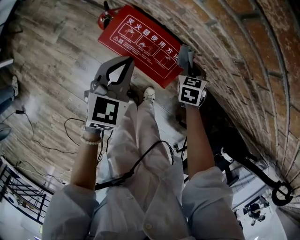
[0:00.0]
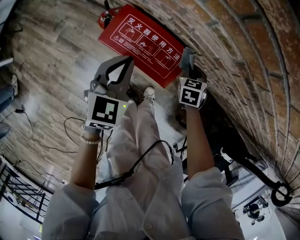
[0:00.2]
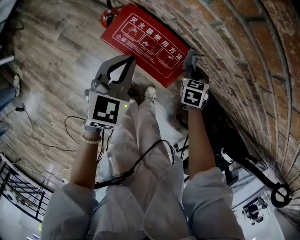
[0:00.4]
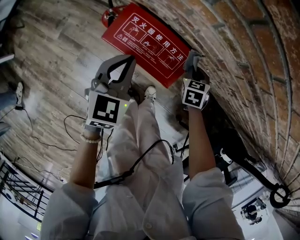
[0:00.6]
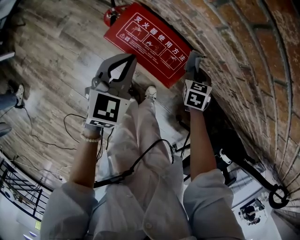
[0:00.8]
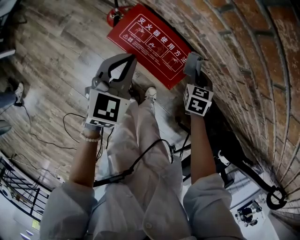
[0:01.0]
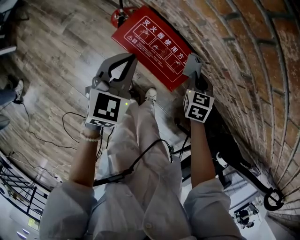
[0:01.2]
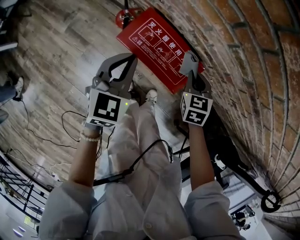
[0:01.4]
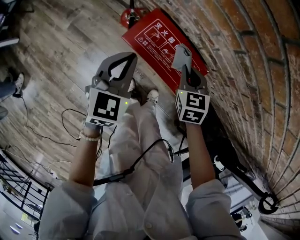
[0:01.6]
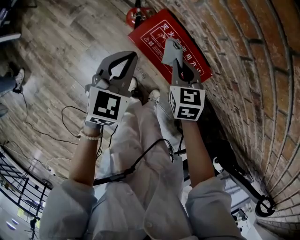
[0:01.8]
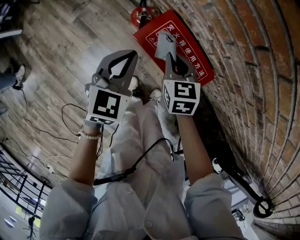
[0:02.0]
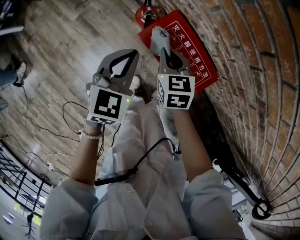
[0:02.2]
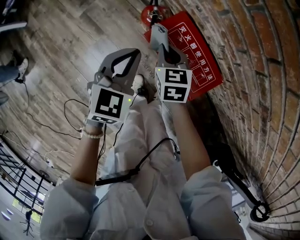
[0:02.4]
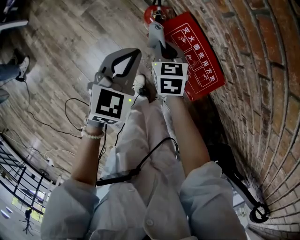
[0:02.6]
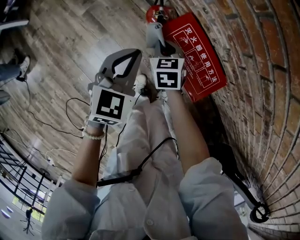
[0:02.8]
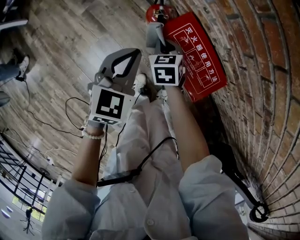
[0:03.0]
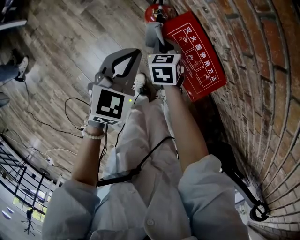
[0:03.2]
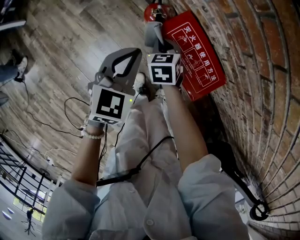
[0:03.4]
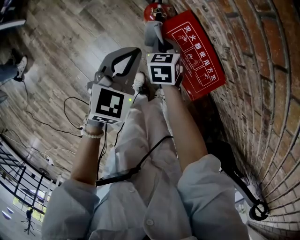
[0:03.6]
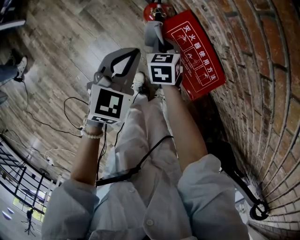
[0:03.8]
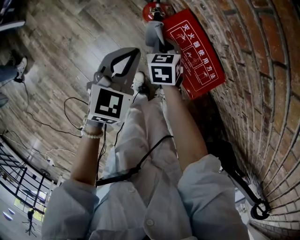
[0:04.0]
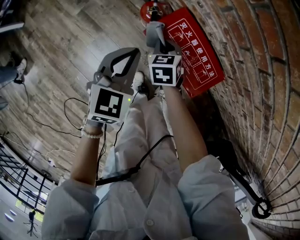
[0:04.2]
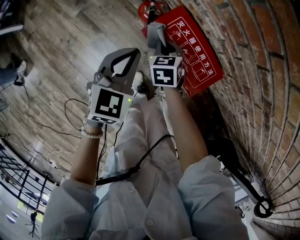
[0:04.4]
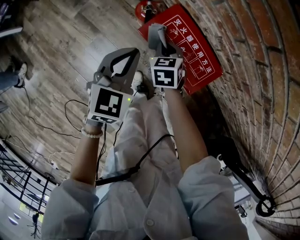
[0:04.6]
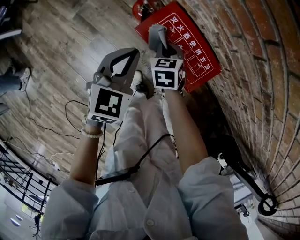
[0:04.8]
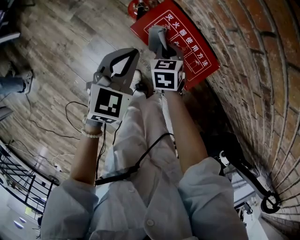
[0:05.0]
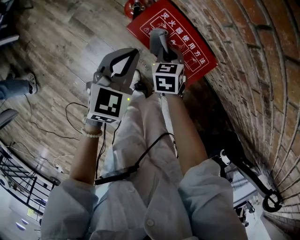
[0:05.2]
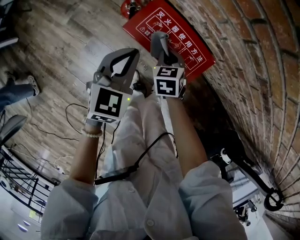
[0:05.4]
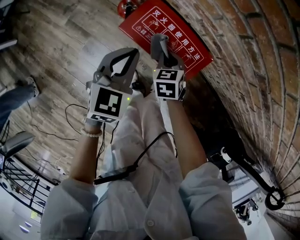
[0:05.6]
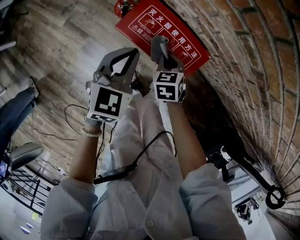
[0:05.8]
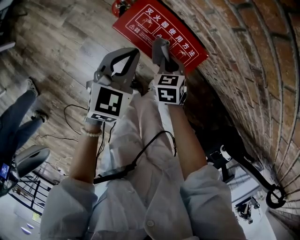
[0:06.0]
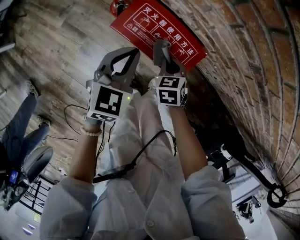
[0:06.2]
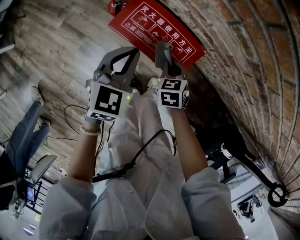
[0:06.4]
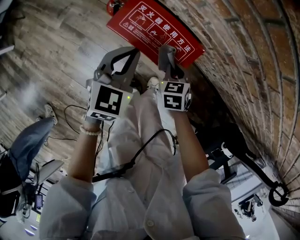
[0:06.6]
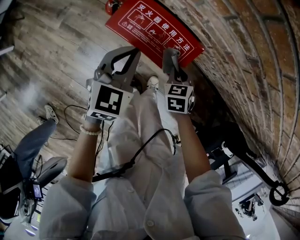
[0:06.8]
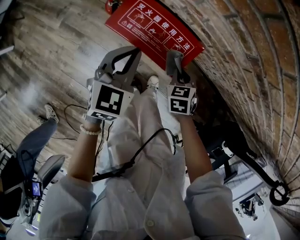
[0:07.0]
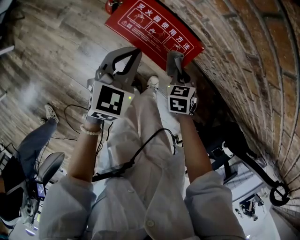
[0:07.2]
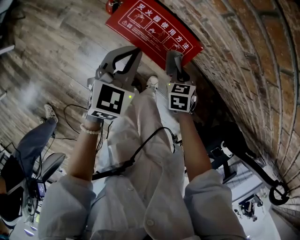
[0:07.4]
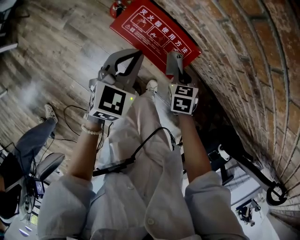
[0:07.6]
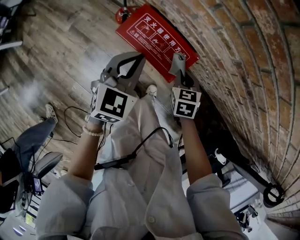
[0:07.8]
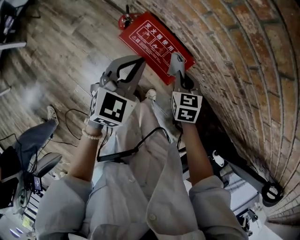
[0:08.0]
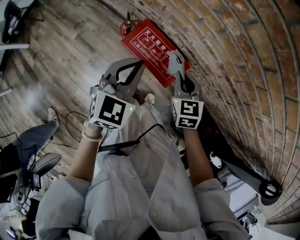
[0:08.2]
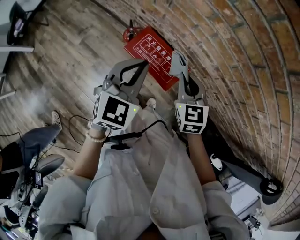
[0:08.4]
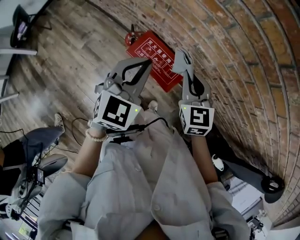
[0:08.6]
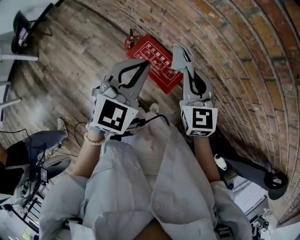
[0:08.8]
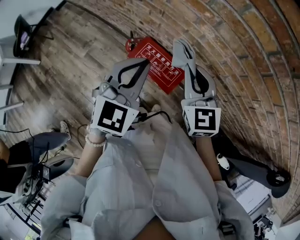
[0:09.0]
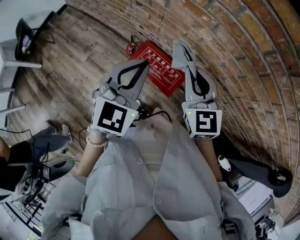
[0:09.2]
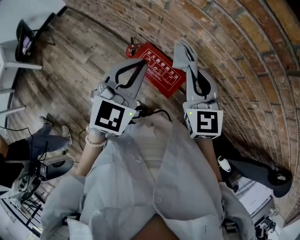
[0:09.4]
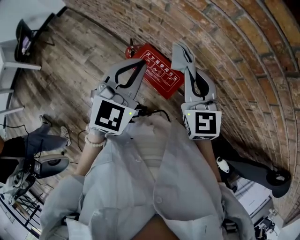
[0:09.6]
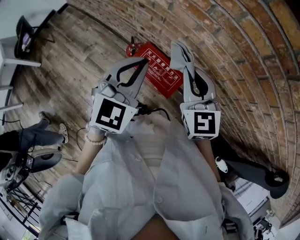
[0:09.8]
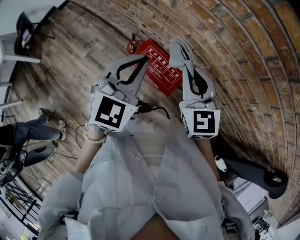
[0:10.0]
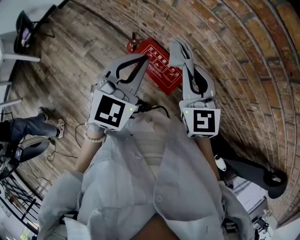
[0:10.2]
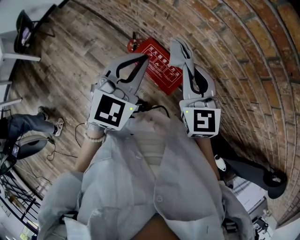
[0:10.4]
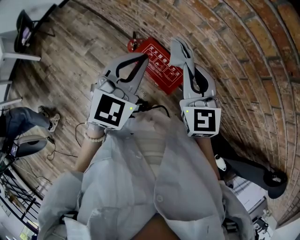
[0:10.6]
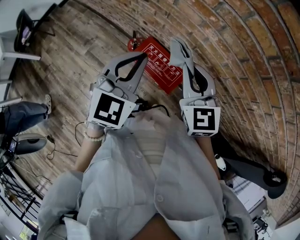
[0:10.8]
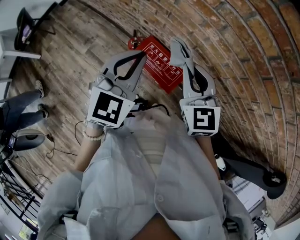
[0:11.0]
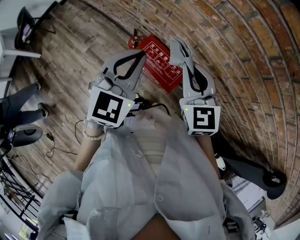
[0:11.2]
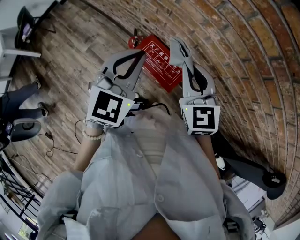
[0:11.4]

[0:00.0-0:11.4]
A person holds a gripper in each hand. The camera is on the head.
0.0 to 1.4 s: The left gripper goes roughly 5 cm to the left, while the right gripper moves to the left and upward, some 10 cm.
1.4 to 2.8 s: The right gripper shifts roughly 25 cm to the left, while the left gripper moves to the left, approximately 10 cm.
2.8 to 4.2 s: The grippers stay close to where they were, moving slightly.
4.2 to 5.6 s: The right gripper shifts some 15 cm to the right and backward; the left gripper moves to the right, about 10 cm.
5.6 to 7.2 s: The left gripper moves to the right, approximately 5 cm. The right gripper shifts about 15 cm to the right and backward.
7.2 to 8.6 s: The two grippers go some 30 cm upward. The right gripper points its fingers approximately 40 degrees further upward.
8.6 to 10.0 s: Both grippers travel together upward, approximately 10 cm.
10.0 to 11.4 s: The grippers make only small movements.

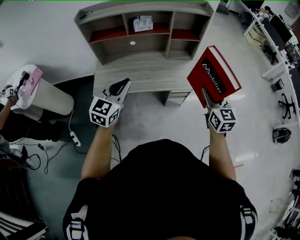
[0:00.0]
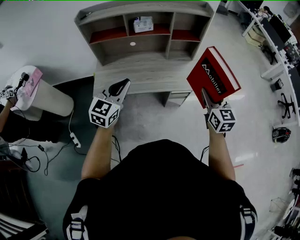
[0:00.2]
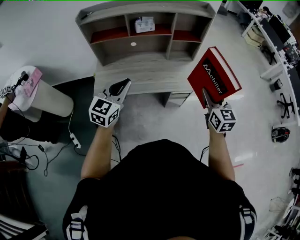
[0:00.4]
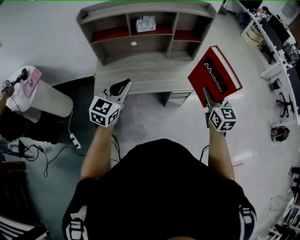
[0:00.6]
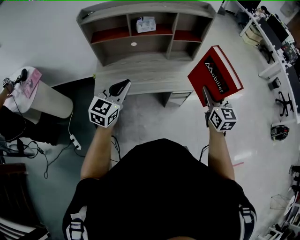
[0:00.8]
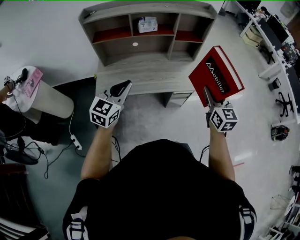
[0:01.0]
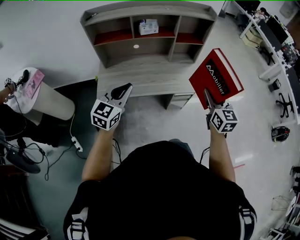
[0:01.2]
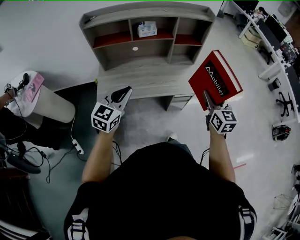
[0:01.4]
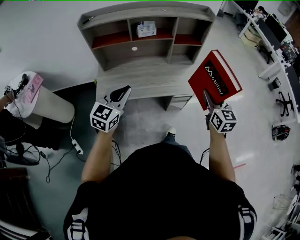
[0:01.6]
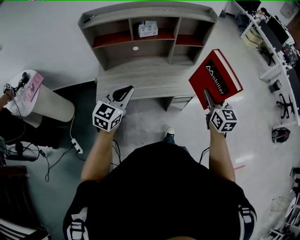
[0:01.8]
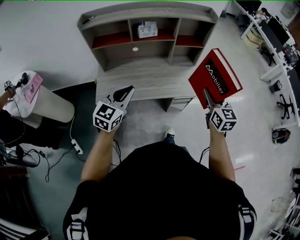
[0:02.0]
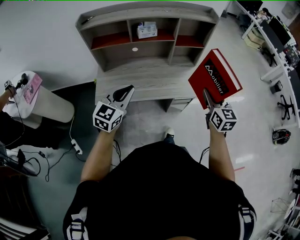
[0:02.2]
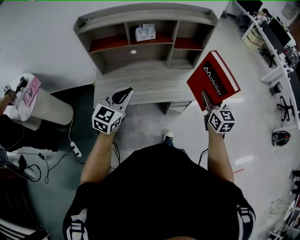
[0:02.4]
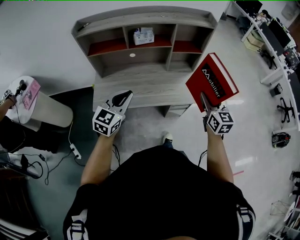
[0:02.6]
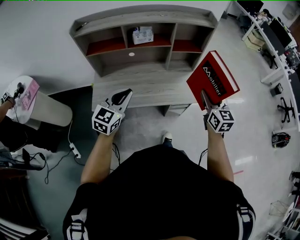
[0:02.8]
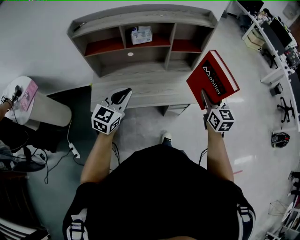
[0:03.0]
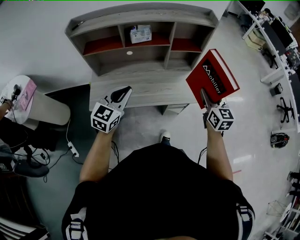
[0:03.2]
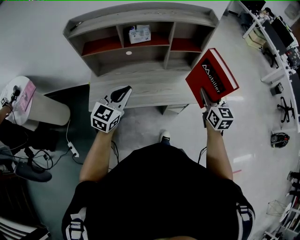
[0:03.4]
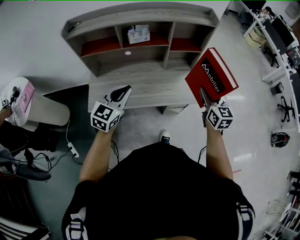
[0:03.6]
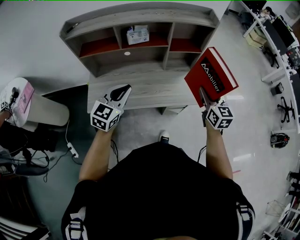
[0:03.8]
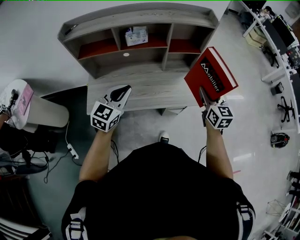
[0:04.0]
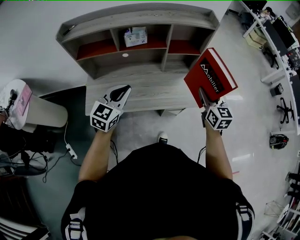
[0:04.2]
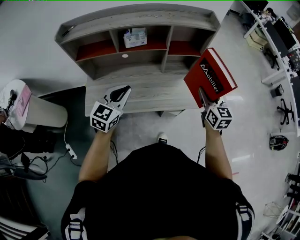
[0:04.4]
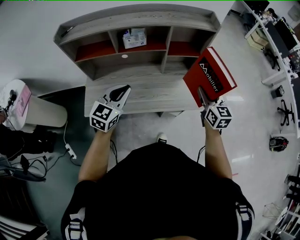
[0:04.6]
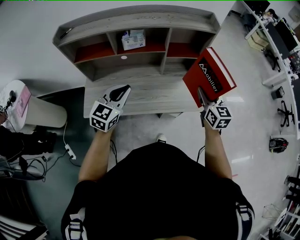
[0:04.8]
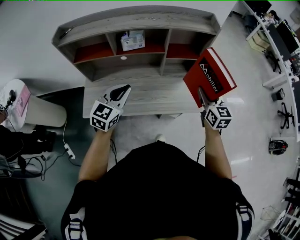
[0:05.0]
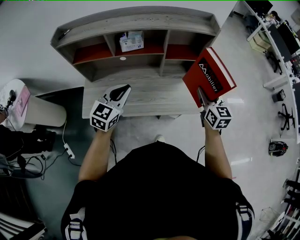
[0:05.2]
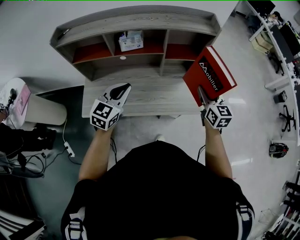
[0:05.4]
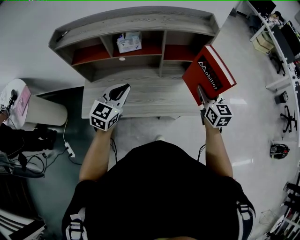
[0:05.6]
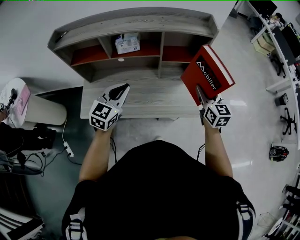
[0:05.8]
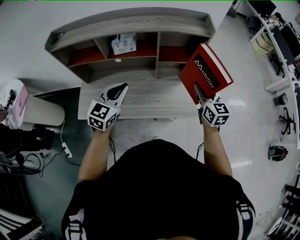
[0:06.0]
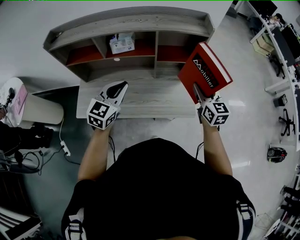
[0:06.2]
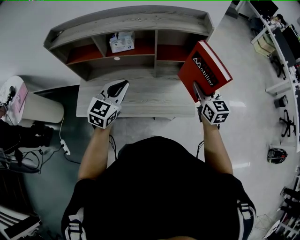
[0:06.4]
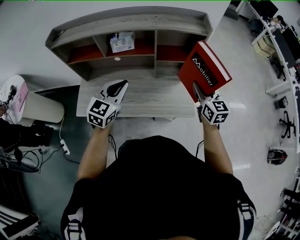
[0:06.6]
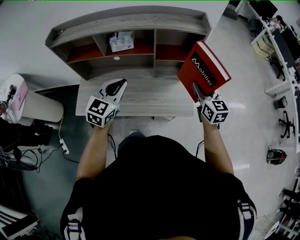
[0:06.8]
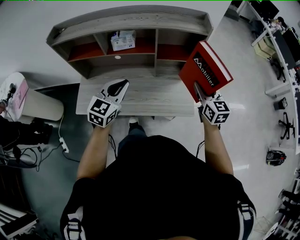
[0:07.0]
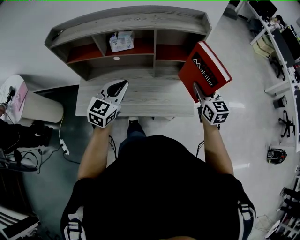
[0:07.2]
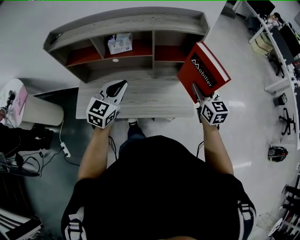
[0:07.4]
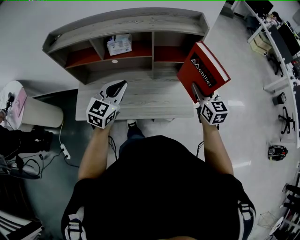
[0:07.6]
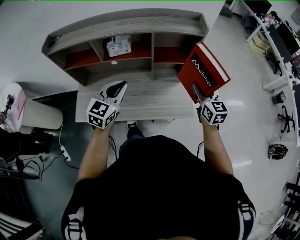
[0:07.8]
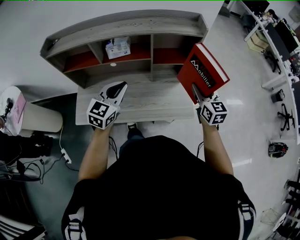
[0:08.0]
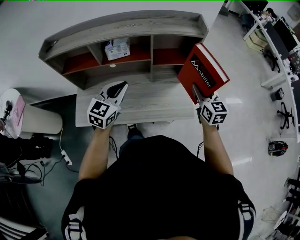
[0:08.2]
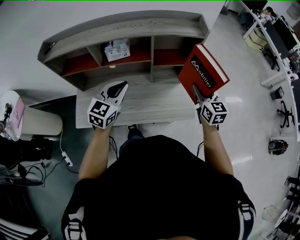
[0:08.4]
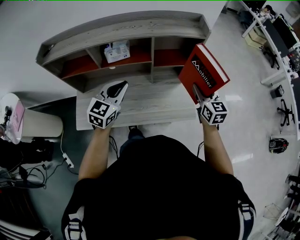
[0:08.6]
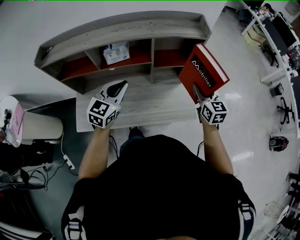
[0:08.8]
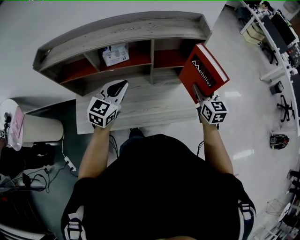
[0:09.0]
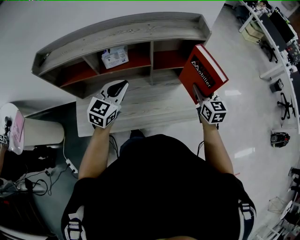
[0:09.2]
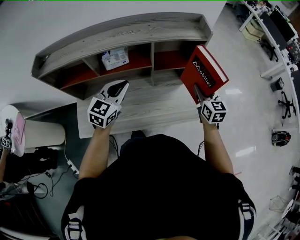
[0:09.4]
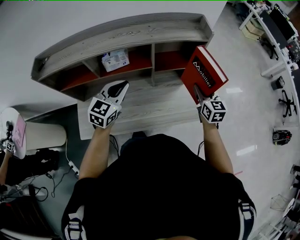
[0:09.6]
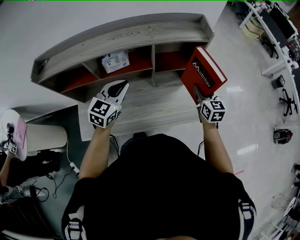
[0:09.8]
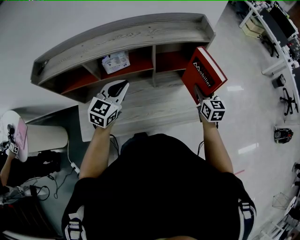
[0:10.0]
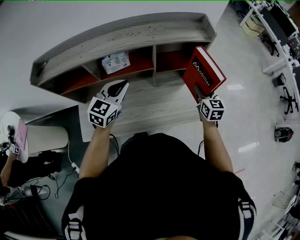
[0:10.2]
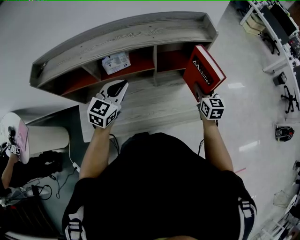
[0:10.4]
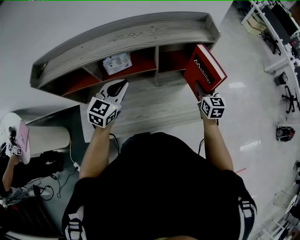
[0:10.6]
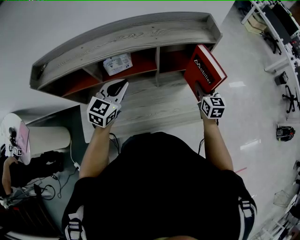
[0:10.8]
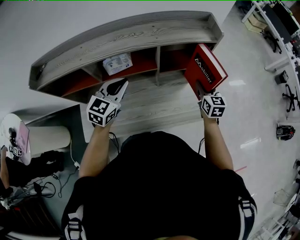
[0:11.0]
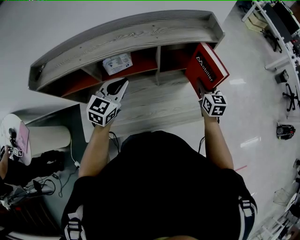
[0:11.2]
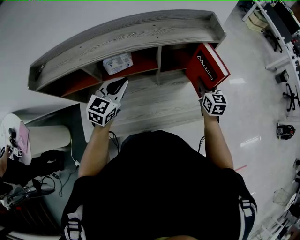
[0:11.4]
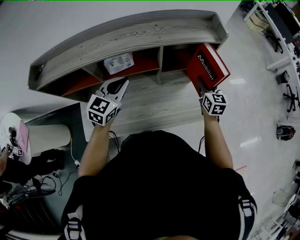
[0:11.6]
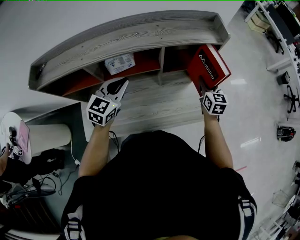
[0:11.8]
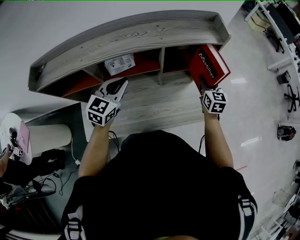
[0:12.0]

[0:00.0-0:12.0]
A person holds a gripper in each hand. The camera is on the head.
0.0 to 1.6 s: The left gripper travels to the left by some 5 cm.
1.6 to 3.0 s: Both grippers move forward, approximately 10 cm.
3.0 to 4.4 s: The two grippers go roughly 10 cm forward.
4.4 to 6.0 s: The left gripper goes about 10 cm forward and to the right. Meanwhile the right gripper is displaced forward by about 10 cm.
6.0 to 7.6 s: The grippers move only a little.
7.6 to 9.0 s: The left gripper shifts roughly 5 cm forward.
9.0 to 10.4 s: The right gripper heads downward and forward, covering roughly 10 cm. The left gripper shifts approximately 5 cm forward.
10.4 to 12.0 s: The right gripper shifts roughly 5 cm forward.

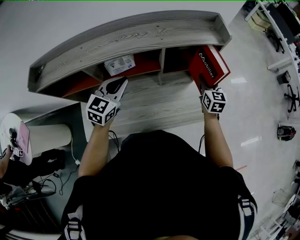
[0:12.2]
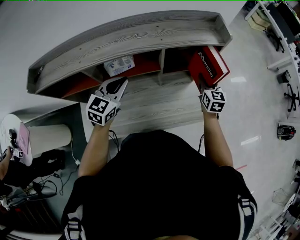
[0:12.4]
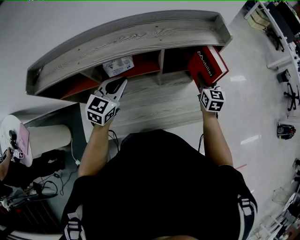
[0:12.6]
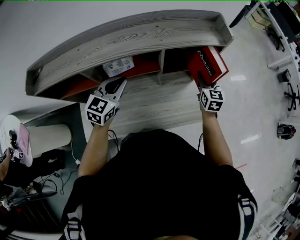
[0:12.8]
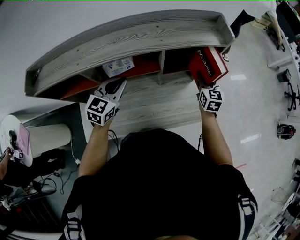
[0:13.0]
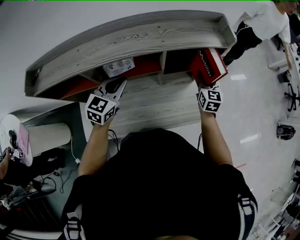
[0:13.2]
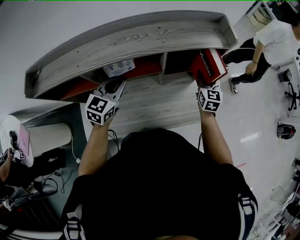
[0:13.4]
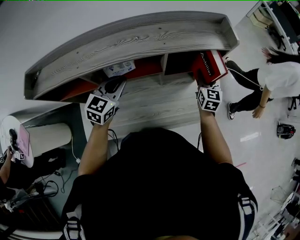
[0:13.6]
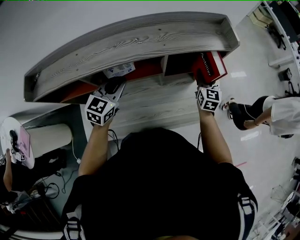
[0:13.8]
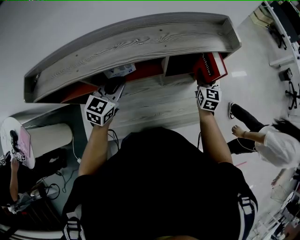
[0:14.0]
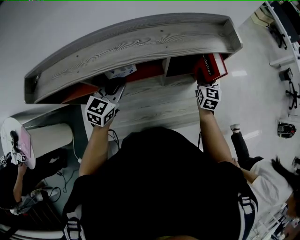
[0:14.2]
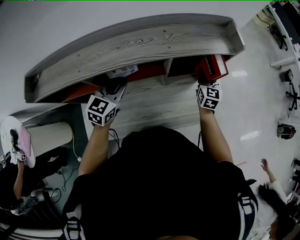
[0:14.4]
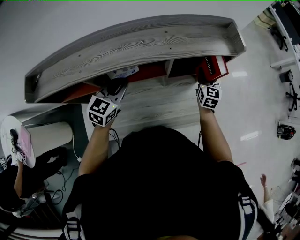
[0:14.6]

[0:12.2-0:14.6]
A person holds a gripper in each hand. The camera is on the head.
12.2 to 13.4 s: The grippers stay close to where they were, moving slightly.
13.4 to 14.6 s: The grippers make only small movements.
